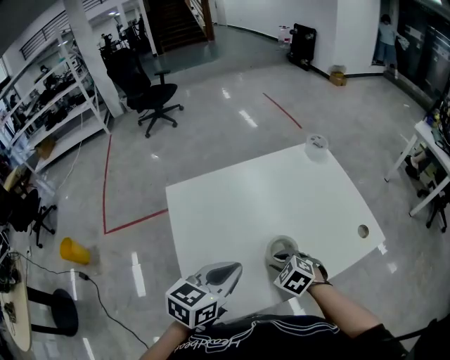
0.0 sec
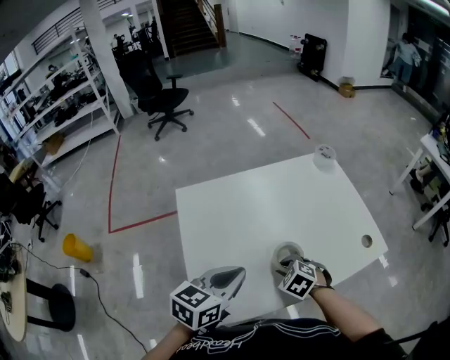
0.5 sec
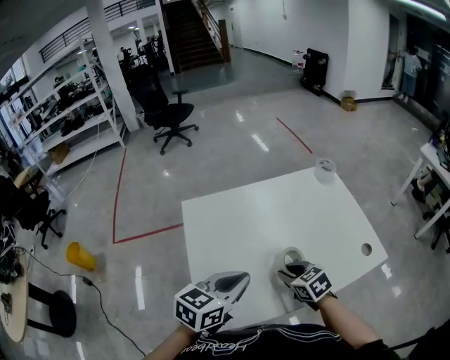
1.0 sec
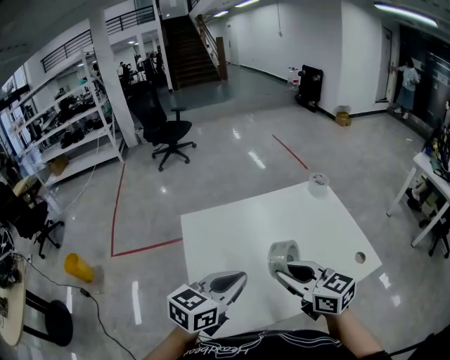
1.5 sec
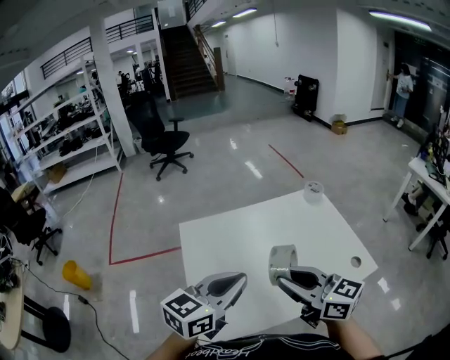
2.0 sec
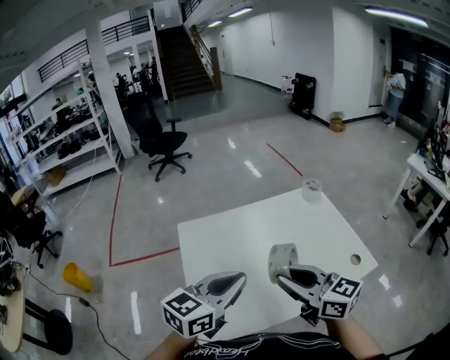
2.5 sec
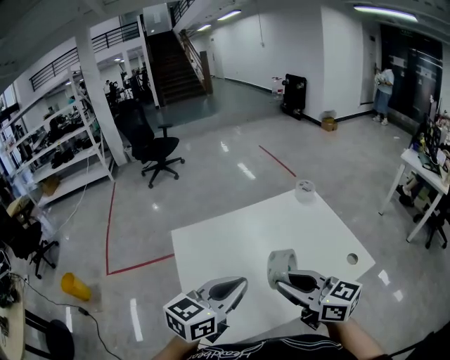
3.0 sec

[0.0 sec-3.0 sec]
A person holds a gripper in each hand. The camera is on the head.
0.0 sec to 1.5 sec: The left gripper travels upward by some 5 cm. Meanwhile the right gripper heads upward, covering roughly 20 cm, and tilts its fingers some 50 degrees upward.

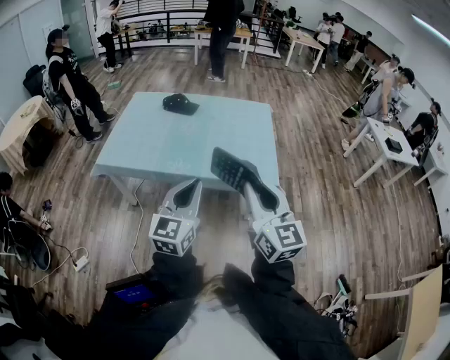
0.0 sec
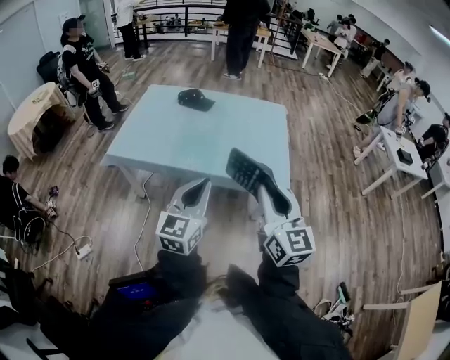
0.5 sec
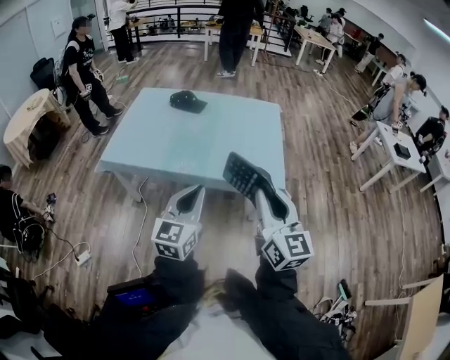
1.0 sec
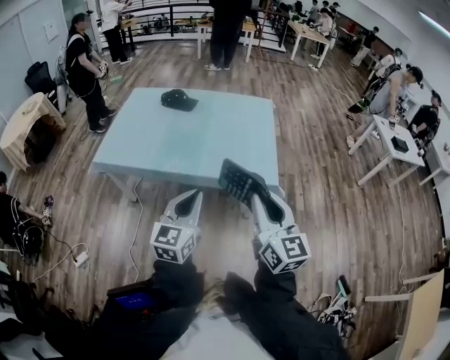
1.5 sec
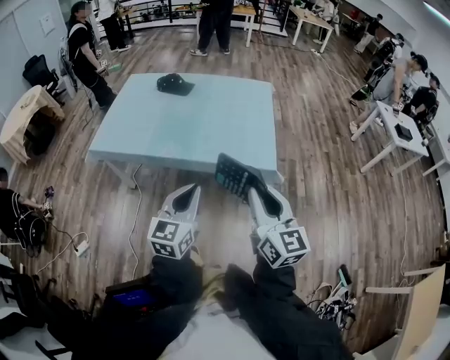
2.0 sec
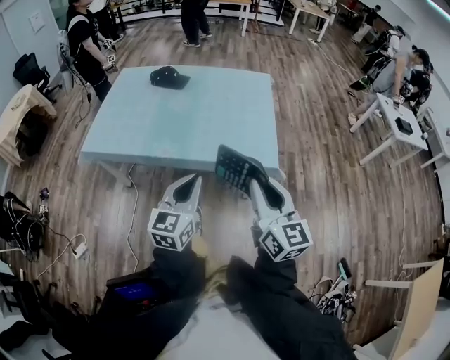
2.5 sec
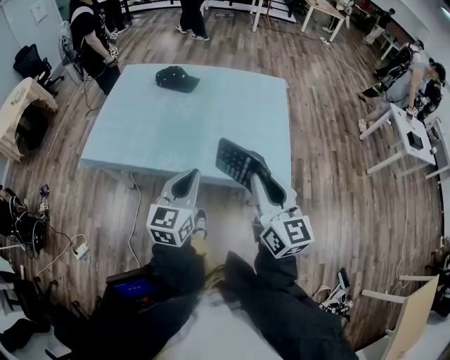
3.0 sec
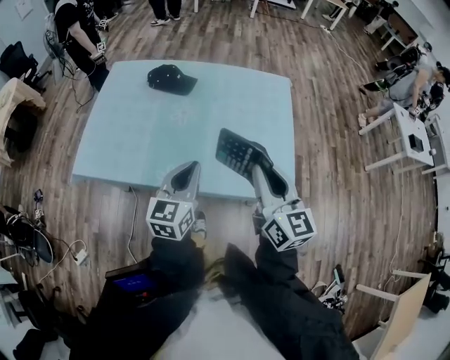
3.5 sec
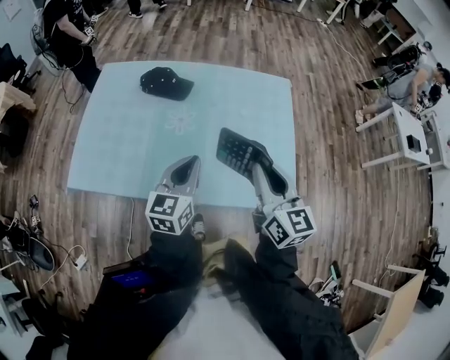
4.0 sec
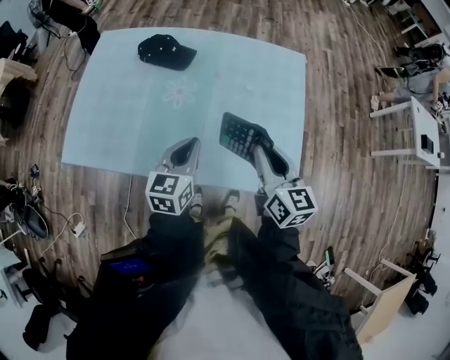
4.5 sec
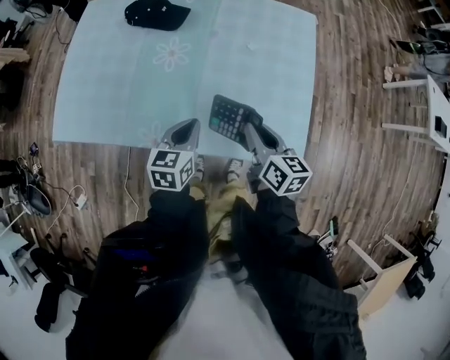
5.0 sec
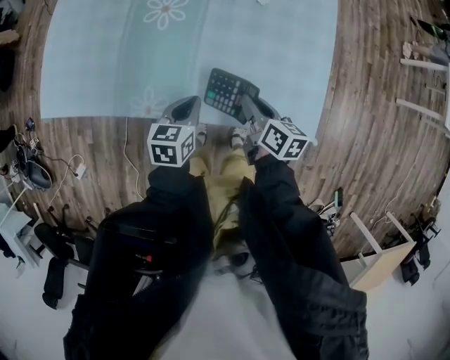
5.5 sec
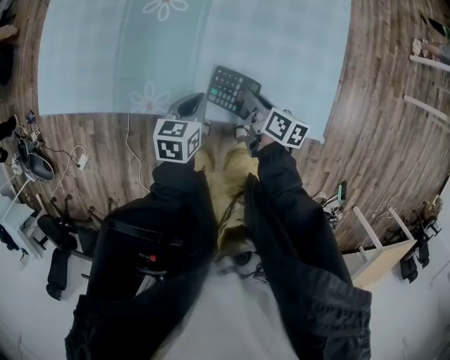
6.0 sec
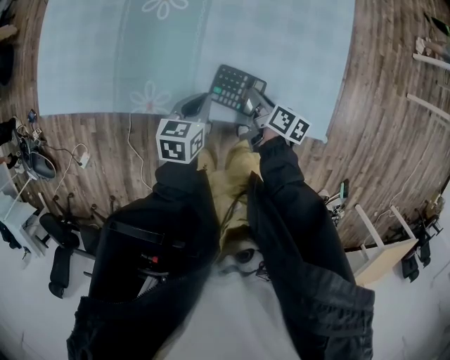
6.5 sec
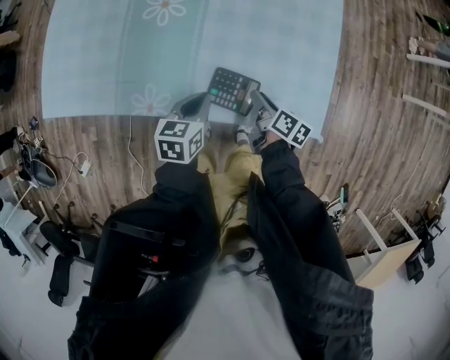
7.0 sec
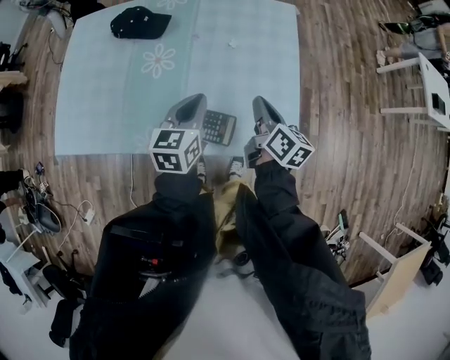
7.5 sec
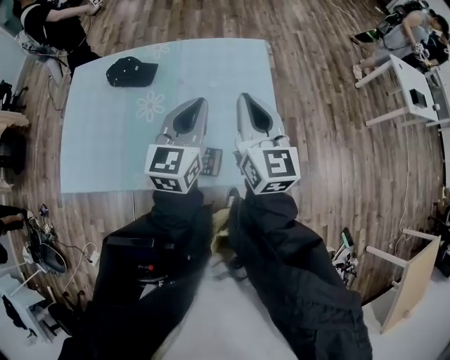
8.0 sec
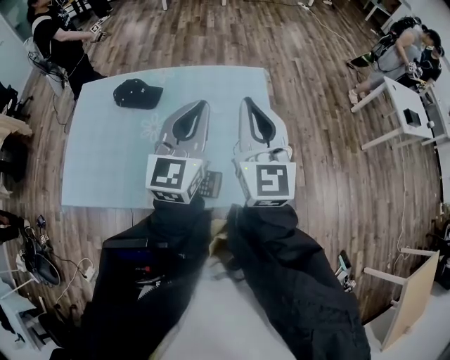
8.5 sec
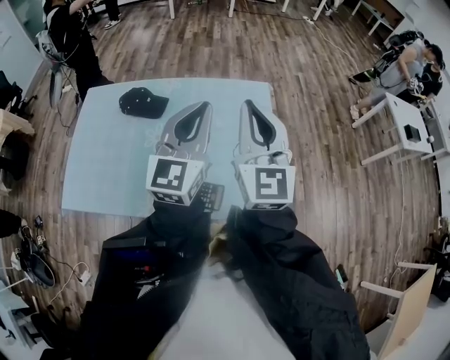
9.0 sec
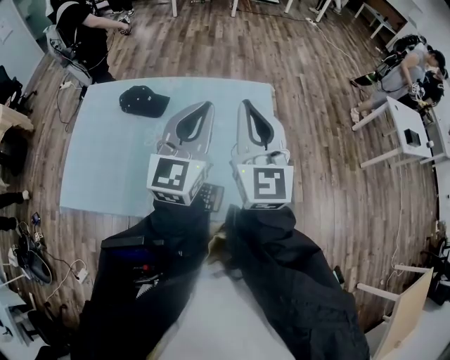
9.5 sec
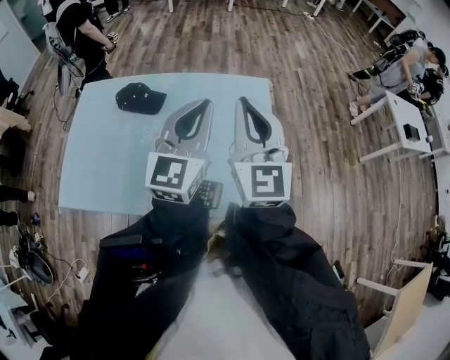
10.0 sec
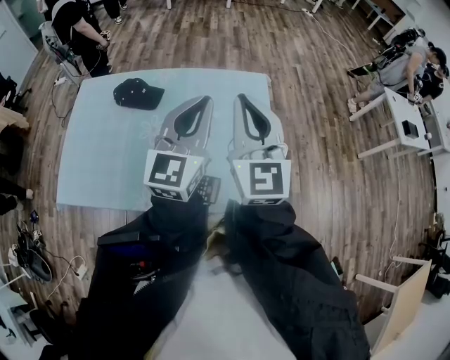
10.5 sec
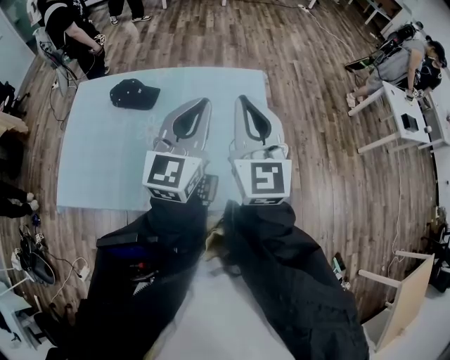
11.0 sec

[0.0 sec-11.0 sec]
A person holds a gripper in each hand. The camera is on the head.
0.0 sec to 2.0 sec: The right gripper shifts approximately 10 cm to the right and downward. The left gripper heads downward and to the right, covering some 10 cm.
2.0 sec to 3.5 sec: The two grippers go approximately 30 cm forward.
3.5 sec to 5.5 sec: Both grippers travel together downward, some 30 cm. The right gripper tilts its fingers some 30 degrees downward; the left gripper angles its fingers downward, by roughly 30 degrees.
5.5 sec to 7.5 sec: The right gripper travels upward, to the right and forward by some 15 cm, and changes its angle by roughly 20 degrees; the left gripper travels upward, forward and to the right by roughly 20 cm.
7.5 sec to 9.0 sec: Both grippers move upward, roughly 30 cm. The right gripper rolls counterclockwise, seen from behind, by roughly 50 degrees, while the left gripper tilts its fingers approximately 30 degrees upward.
9.0 sec to 11.0 sec: The grippers make only small movements.

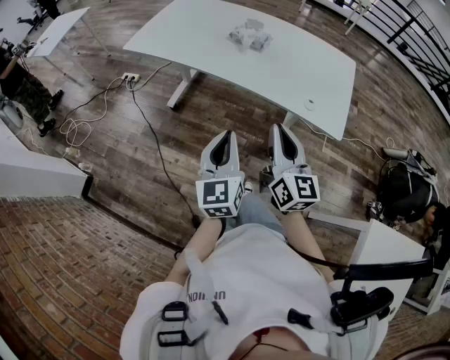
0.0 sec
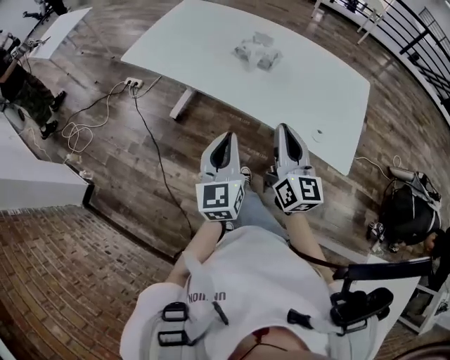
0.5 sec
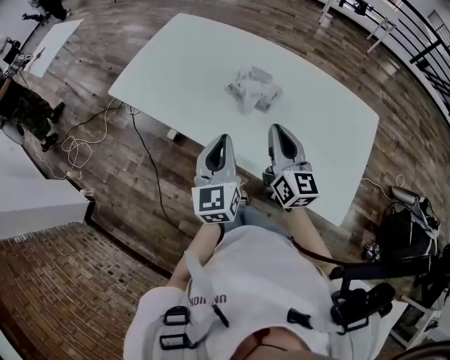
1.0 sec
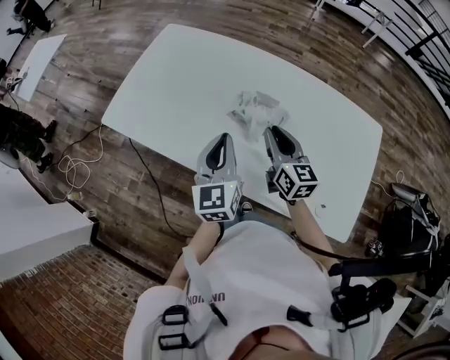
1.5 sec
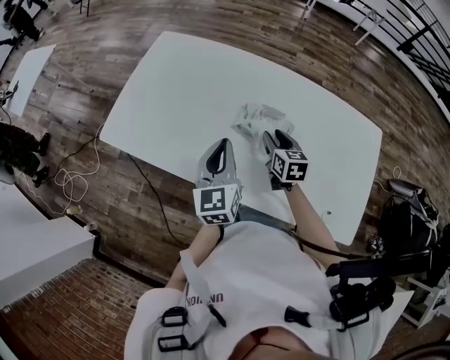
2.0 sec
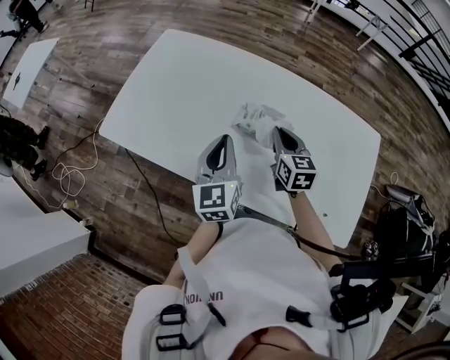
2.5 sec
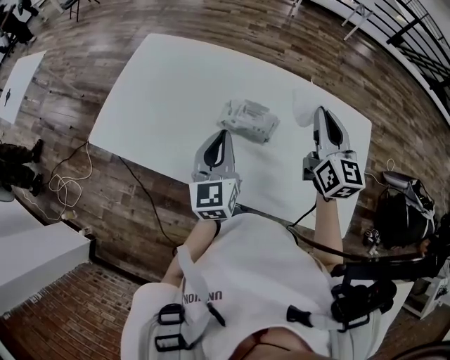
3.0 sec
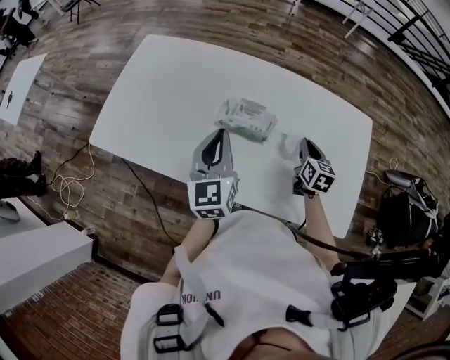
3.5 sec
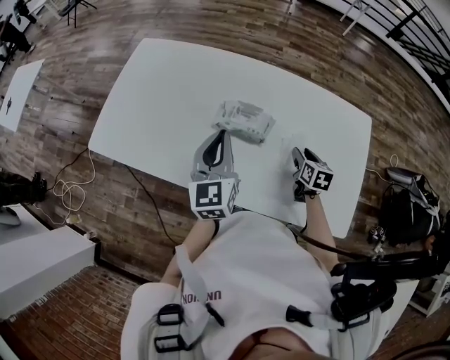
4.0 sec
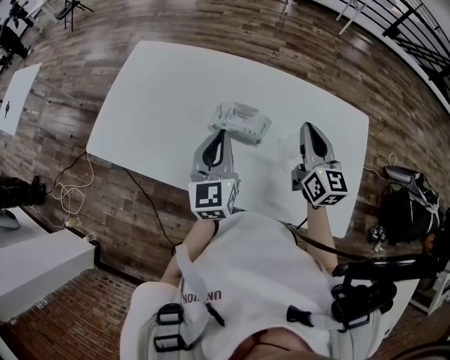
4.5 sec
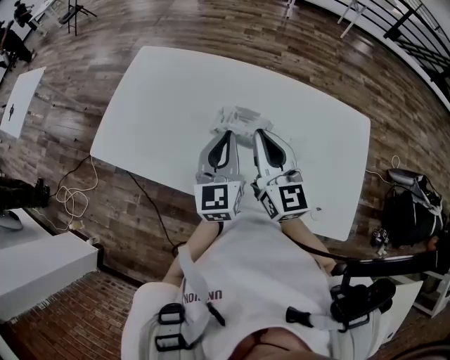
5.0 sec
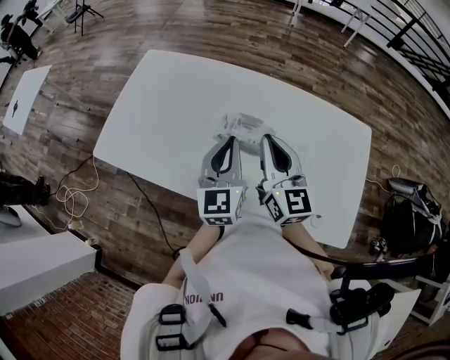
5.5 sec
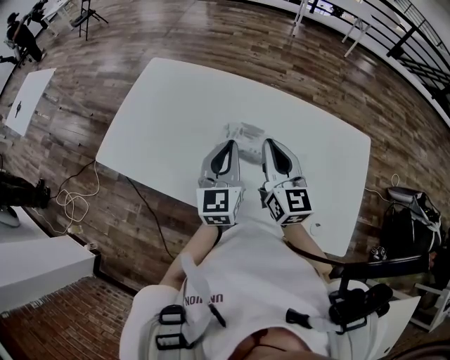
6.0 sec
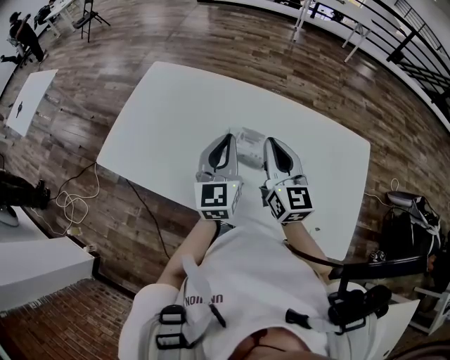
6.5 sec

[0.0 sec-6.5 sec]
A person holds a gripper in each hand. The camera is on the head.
0.0 sec to 2.0 sec: Both grippers are carried forward, some 50 cm. The right gripper travels downward by some 20 cm, points its fingers about 40 degrees further downward, and opens its fingers.
2.0 sec to 4.5 sec: The right gripper swings up and down, approximately 25 cm each way, with 2 reversals, turns by approximately 30 degrees, and closes its fingers; the left gripper travels to the right by about 5 cm.
4.5 sec to 6.5 sec: The right gripper travels to the left by approximately 10 cm.

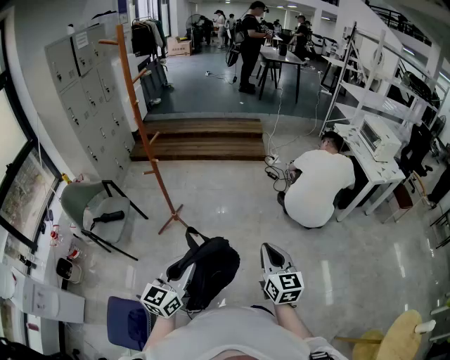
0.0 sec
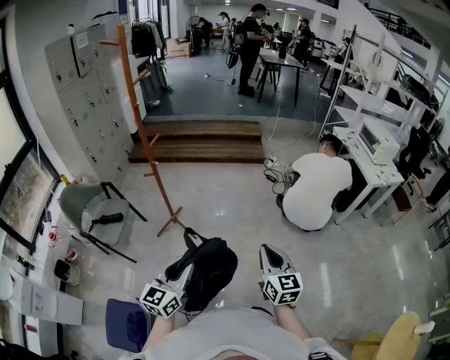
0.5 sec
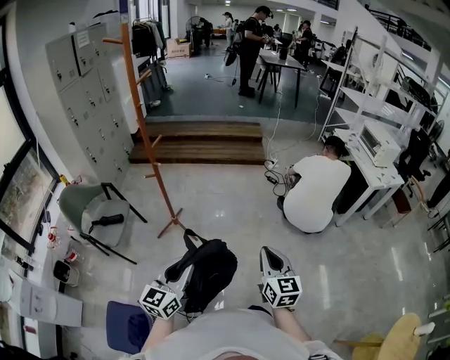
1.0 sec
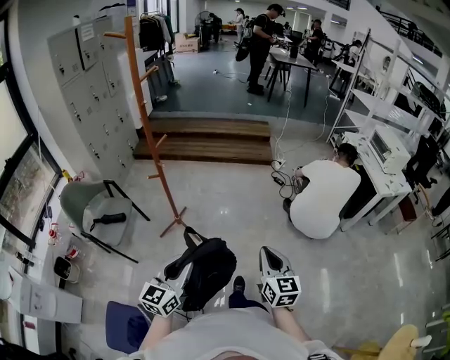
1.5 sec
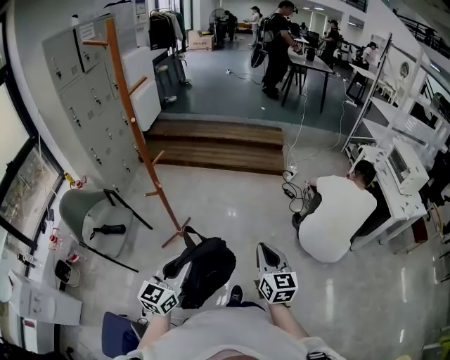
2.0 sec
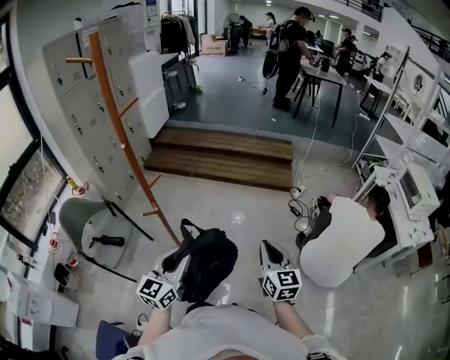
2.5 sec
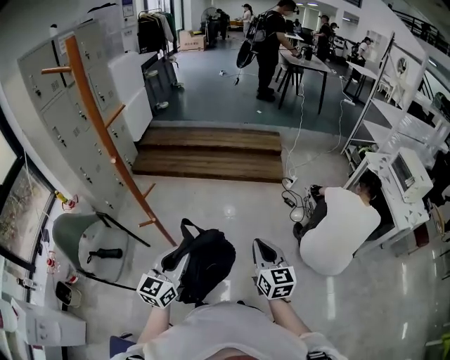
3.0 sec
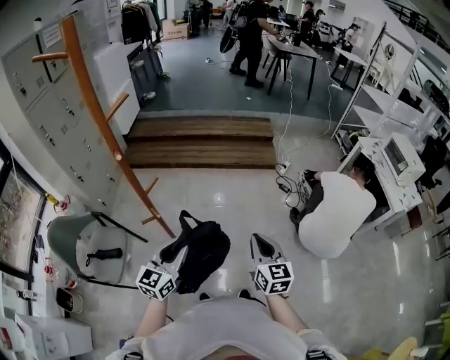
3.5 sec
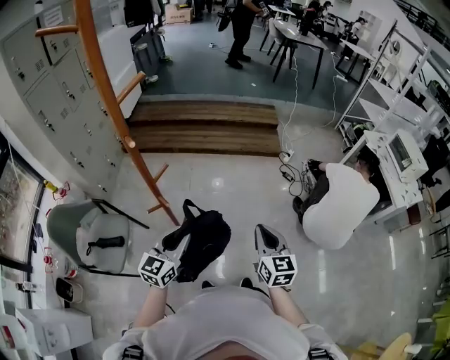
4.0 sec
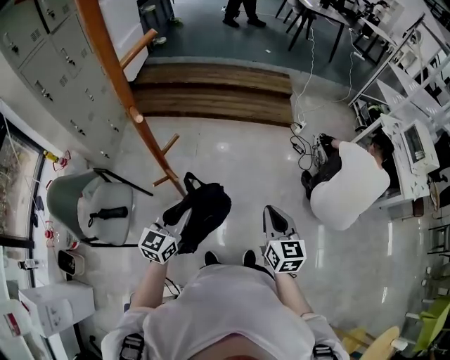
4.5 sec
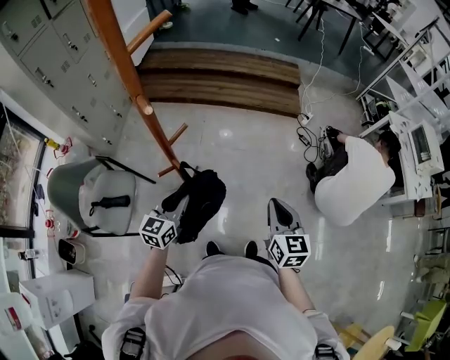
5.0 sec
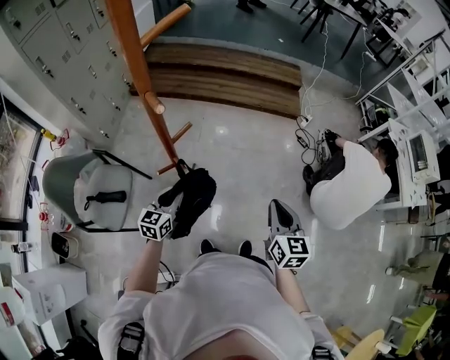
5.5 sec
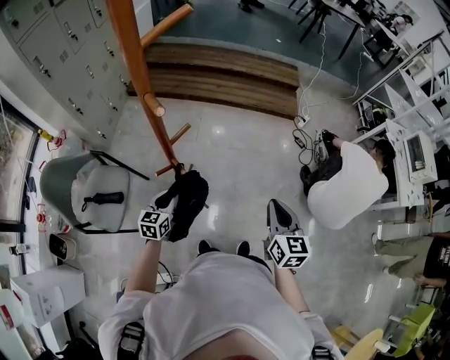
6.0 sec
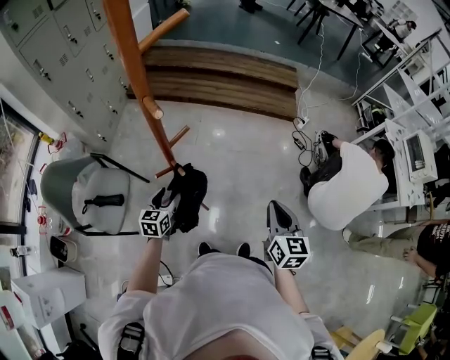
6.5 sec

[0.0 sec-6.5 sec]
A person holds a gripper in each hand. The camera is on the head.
0.0 sec to 2.0 sec: The grippers both shift forward by about 25 cm.
2.0 sec to 4.5 sec: Both grippers travel together forward and to the left, roughly 25 cm.
4.5 sec to 6.5 sec: The left gripper moves downward and to the left, about 20 cm, rotates some 30 degrees, and opens.
